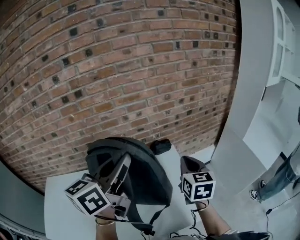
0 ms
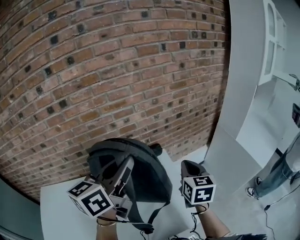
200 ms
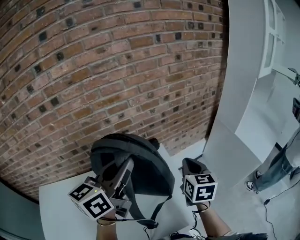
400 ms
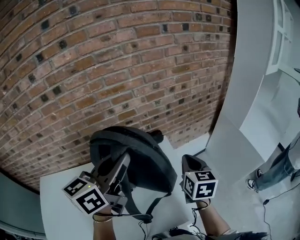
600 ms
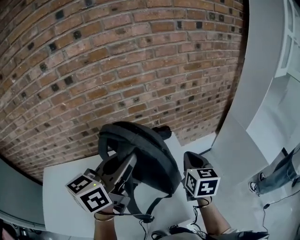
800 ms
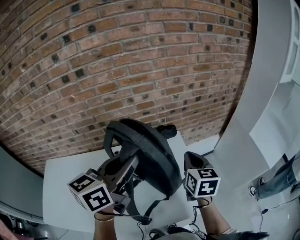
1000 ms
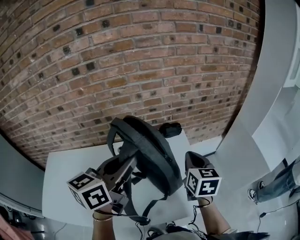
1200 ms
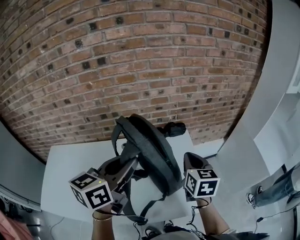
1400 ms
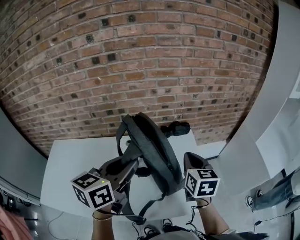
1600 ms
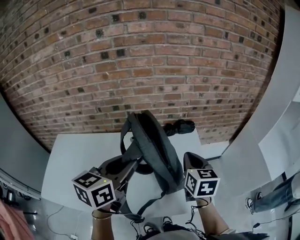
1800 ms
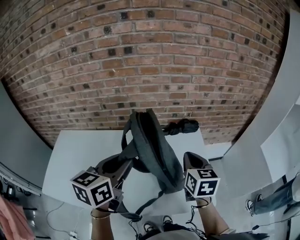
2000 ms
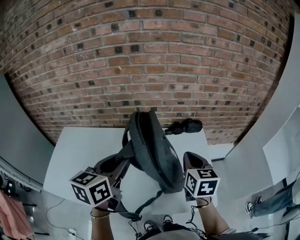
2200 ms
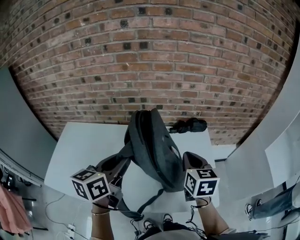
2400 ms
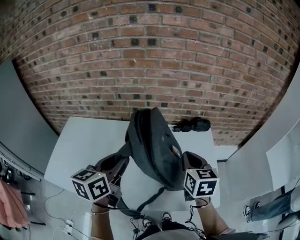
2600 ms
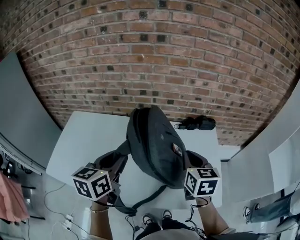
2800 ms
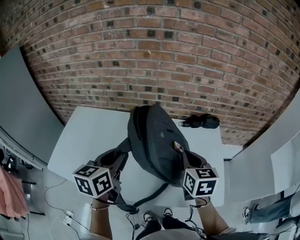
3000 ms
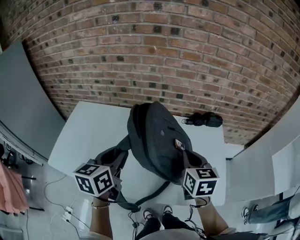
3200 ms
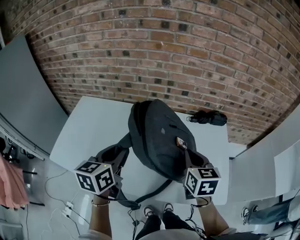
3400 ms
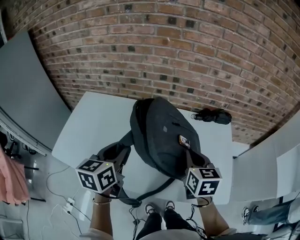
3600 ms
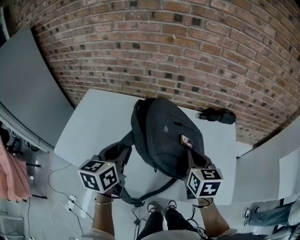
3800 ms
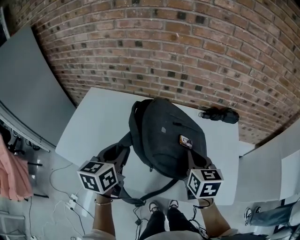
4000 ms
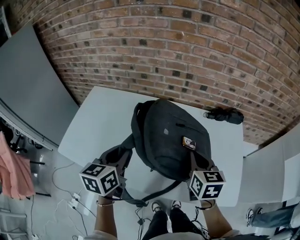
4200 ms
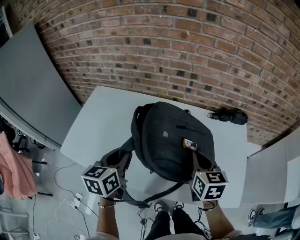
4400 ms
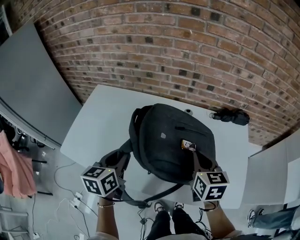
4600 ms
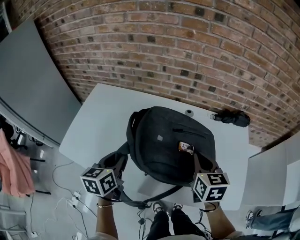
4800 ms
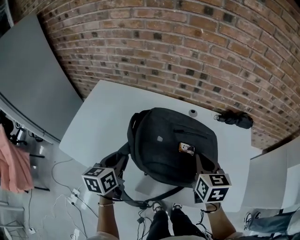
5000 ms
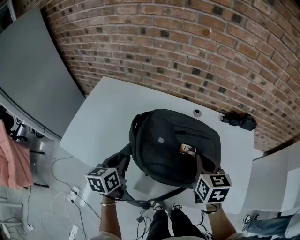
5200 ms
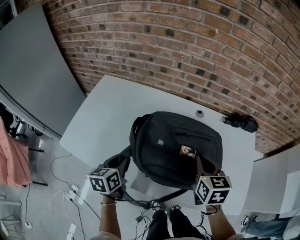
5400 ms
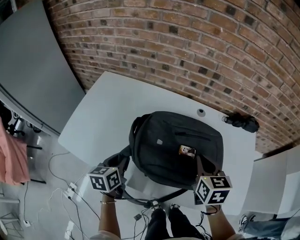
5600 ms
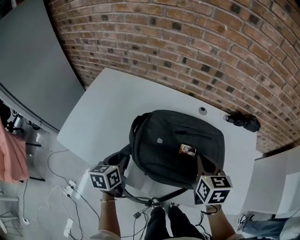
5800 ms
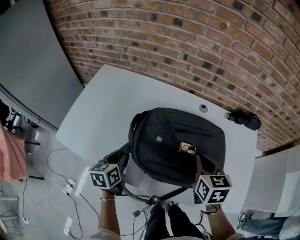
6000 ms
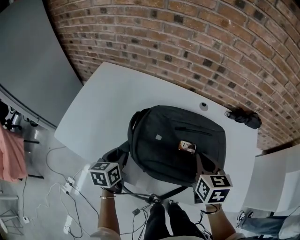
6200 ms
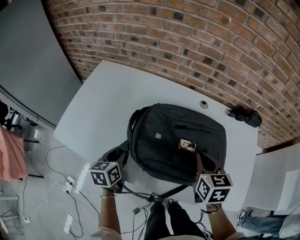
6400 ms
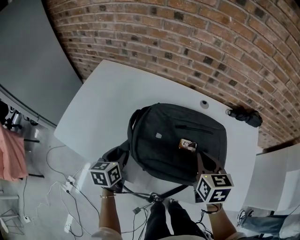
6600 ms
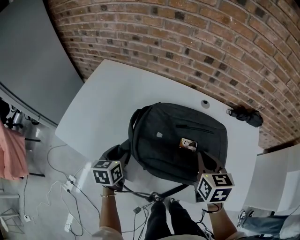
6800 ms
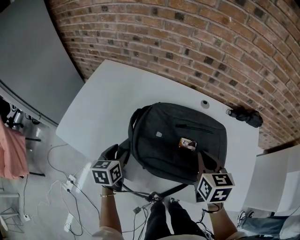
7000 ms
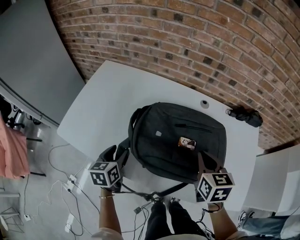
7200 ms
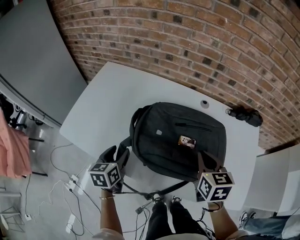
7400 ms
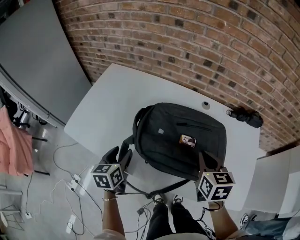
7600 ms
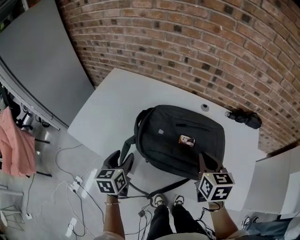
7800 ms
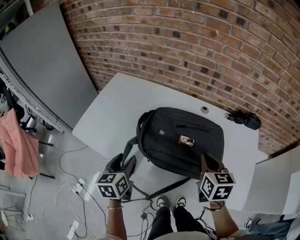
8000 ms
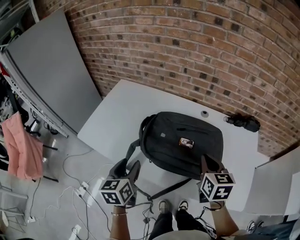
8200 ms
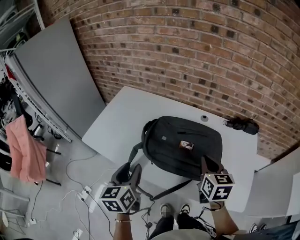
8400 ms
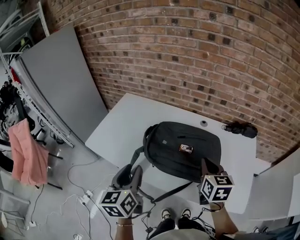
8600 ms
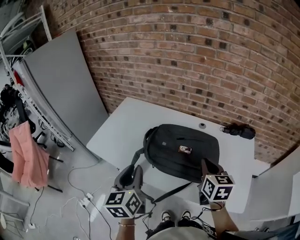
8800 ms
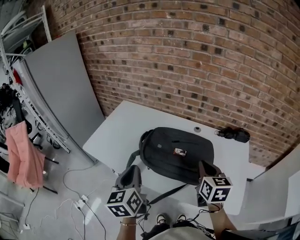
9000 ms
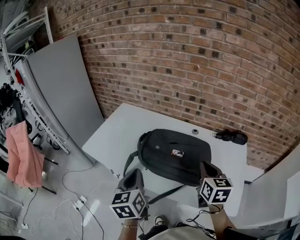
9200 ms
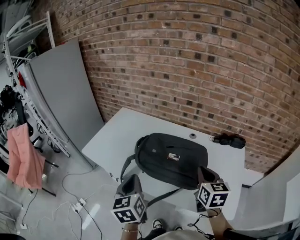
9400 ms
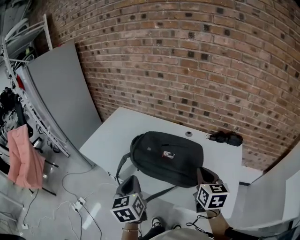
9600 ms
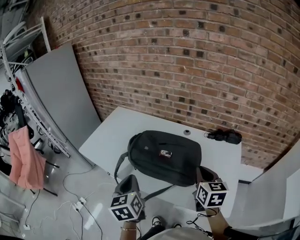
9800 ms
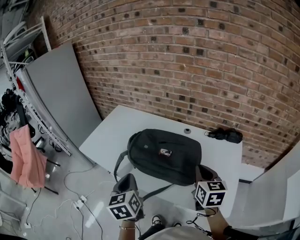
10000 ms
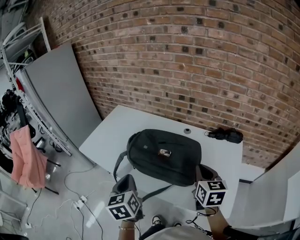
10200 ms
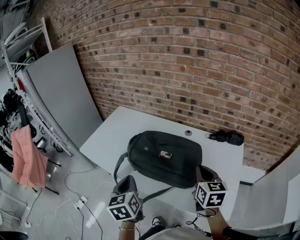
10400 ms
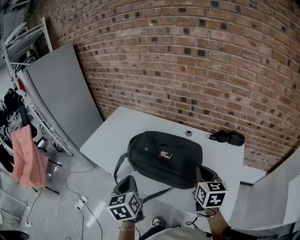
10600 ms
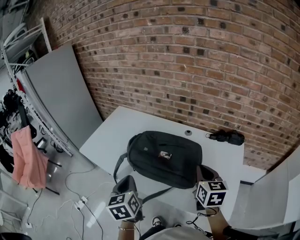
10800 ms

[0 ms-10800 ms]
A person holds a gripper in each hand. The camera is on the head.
0 ms to 1600 ms: The right gripper shifts approximately 10 cm to the left and backward. Meanwhile the left gripper moves downward, backward and to the left, about 15 cm.
1600 ms to 3000 ms: The right gripper travels to the left by some 15 cm. The left gripper goes roughly 20 cm to the left and downward, and swivels approximately 20 degrees.
3000 ms to 4600 ms: Both grippers move to the left and downward, approximately 15 cm.
4600 ms to 6200 ms: The left gripper heads downward and to the left, covering about 20 cm. The right gripper shifts roughly 10 cm downward and to the left.
6200 ms to 7800 ms: The right gripper ends up about 5 cm from where it was, while the left gripper is displaced backward and upward by approximately 10 cm, and opens up.
7800 ms to 9200 ms: The right gripper goes about 15 cm upward and backward, while the left gripper travels upward, backward and to the right by about 25 cm, and closes.
9200 ms to 10800 ms: The right gripper is displaced to the right by roughly 5 cm, while the left gripper shifts by roughly 5 cm.

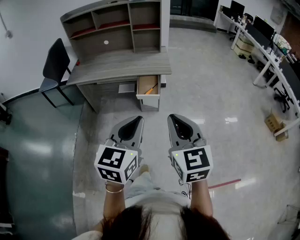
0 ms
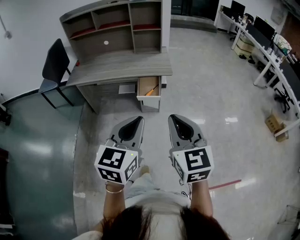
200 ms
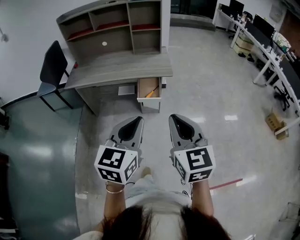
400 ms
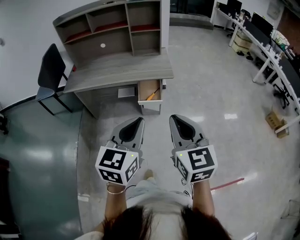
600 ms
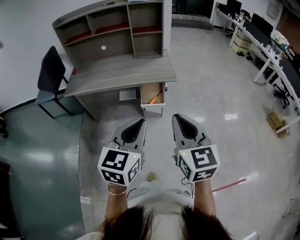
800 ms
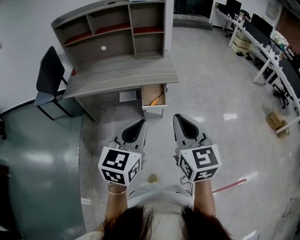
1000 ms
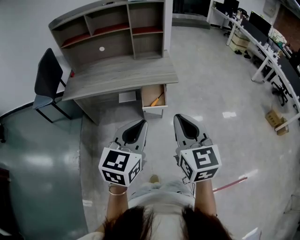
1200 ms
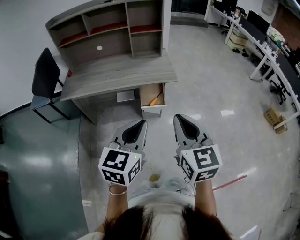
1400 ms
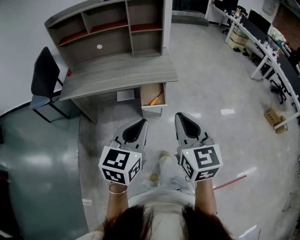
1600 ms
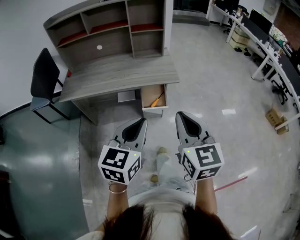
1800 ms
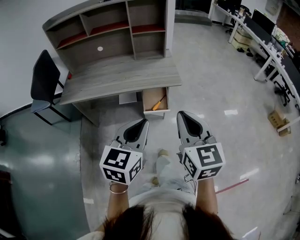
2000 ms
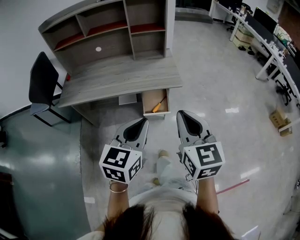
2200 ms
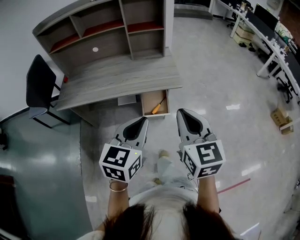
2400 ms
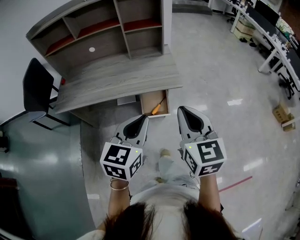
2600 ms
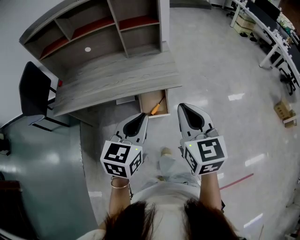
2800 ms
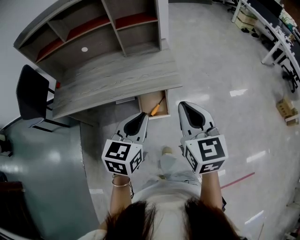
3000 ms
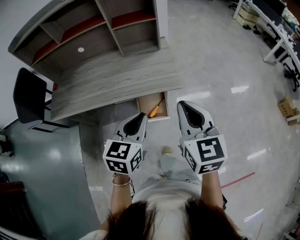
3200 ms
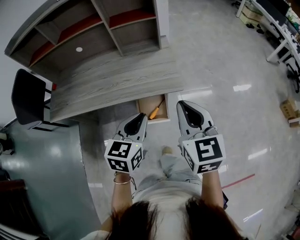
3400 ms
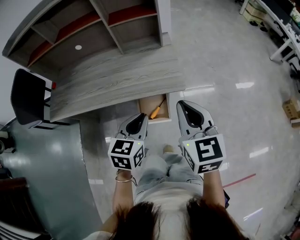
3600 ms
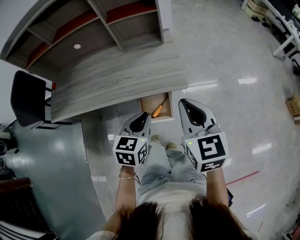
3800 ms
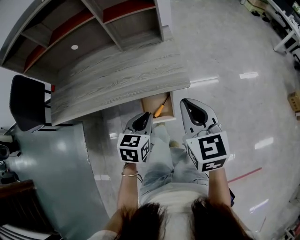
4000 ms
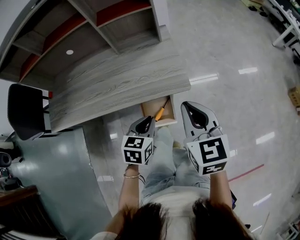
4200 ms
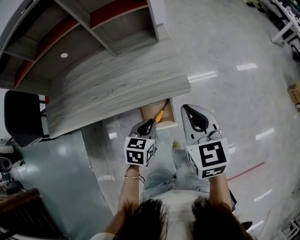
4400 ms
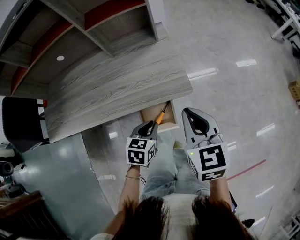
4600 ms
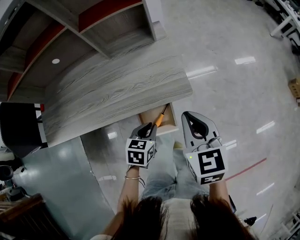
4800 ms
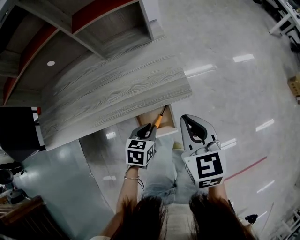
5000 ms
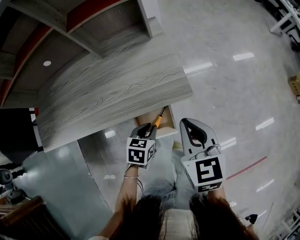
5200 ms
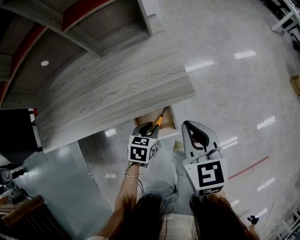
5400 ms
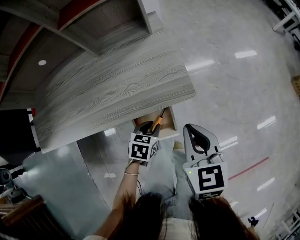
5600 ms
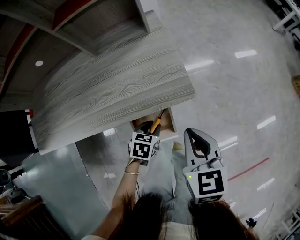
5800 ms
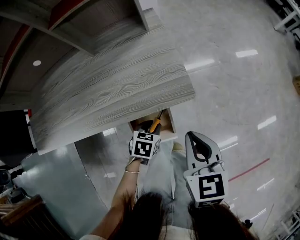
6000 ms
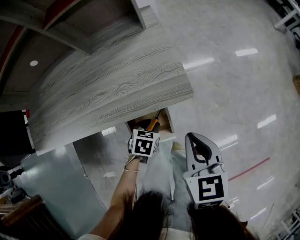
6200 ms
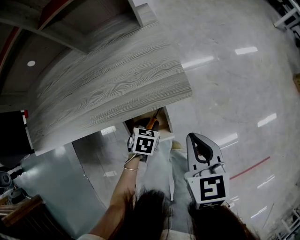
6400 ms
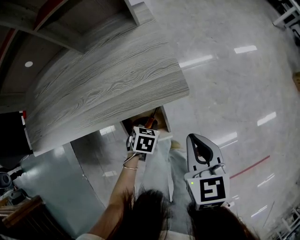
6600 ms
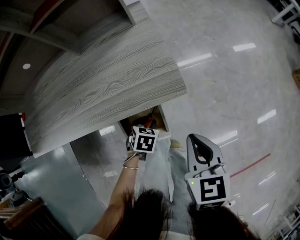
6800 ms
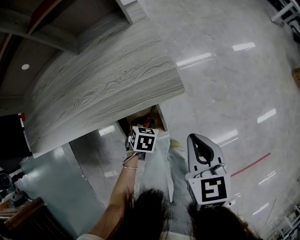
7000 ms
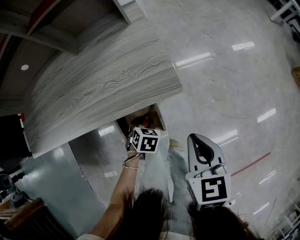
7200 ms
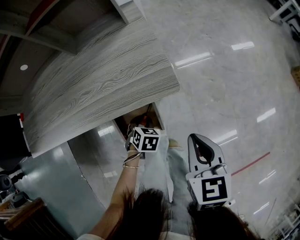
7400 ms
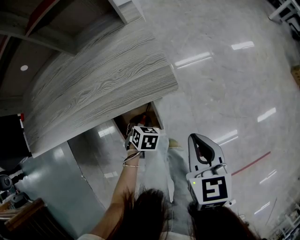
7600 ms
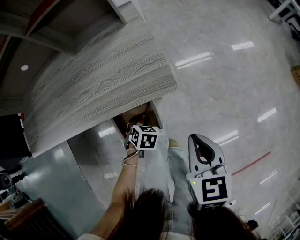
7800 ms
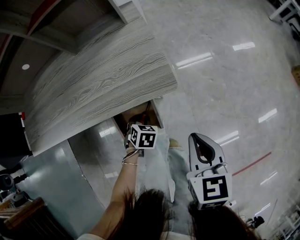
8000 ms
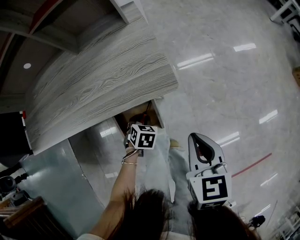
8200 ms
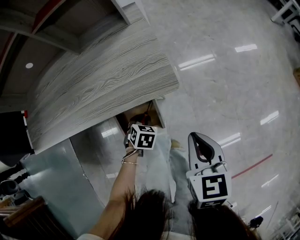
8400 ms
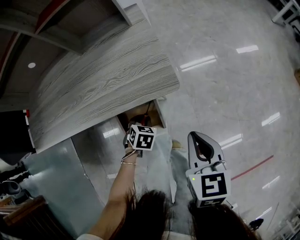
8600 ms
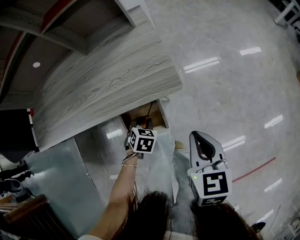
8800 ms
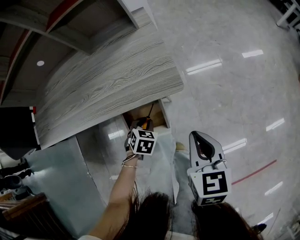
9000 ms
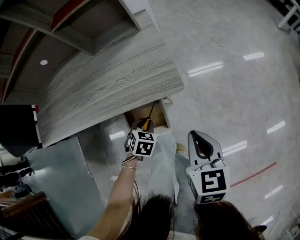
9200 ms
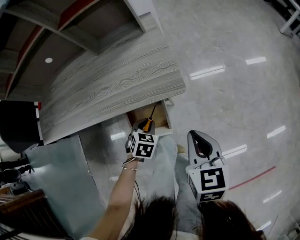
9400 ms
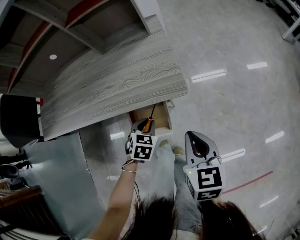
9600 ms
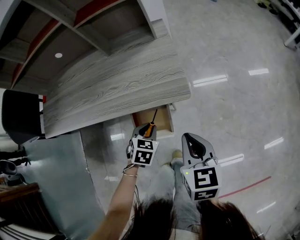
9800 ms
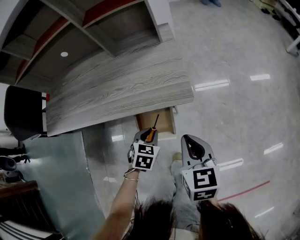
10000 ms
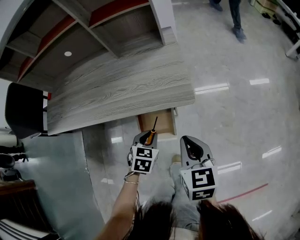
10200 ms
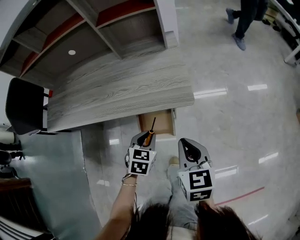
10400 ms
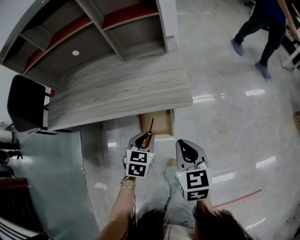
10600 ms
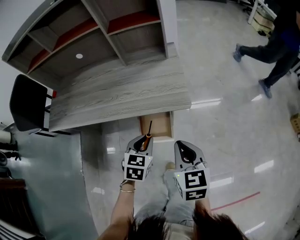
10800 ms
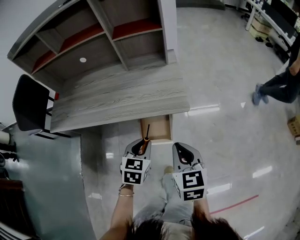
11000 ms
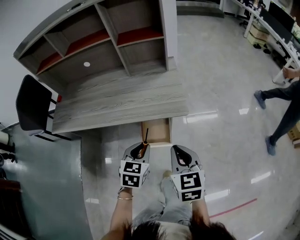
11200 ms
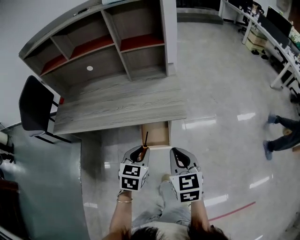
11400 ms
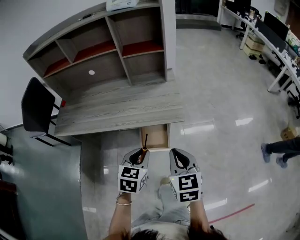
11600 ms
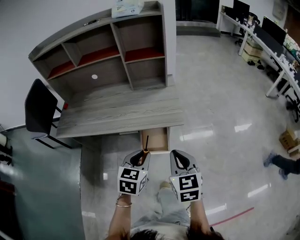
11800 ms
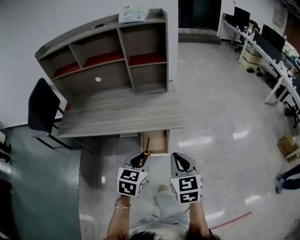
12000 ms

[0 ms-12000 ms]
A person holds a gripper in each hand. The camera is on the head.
0 ms to 1600 ms: The grippers both shift forward and to the left by roughly 15 cm.
1600 ms to 3000 ms: Both grippers move forward, about 25 cm.
3000 ms to 4400 ms: The right gripper heads forward and downward, covering roughly 20 cm, while the left gripper heads downward and forward, covering about 25 cm, and turns by roughly 20 degrees.
4400 ms to 6000 ms: The grippers both shift downward by about 15 cm. The left gripper opens.
6000 ms to 7600 ms: The right gripper heads to the right, covering roughly 5 cm. The left gripper is displaced downward by approximately 5 cm, and turns by about 20 degrees.
7600 ms to 9000 ms: The grippers move only a little.
9000 ms to 10400 ms: The right gripper travels to the left and upward by about 10 cm. The left gripper moves upward, about 15 cm.
10400 ms to 12000 ms: The right gripper goes about 15 cm upward and backward. The left gripper goes some 25 cm upward and backward.

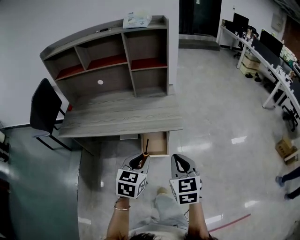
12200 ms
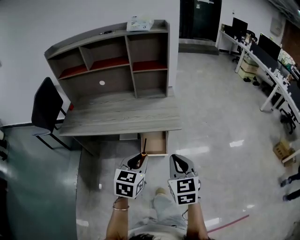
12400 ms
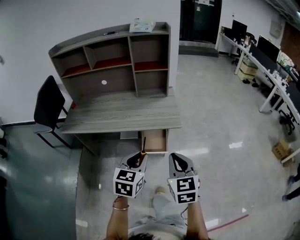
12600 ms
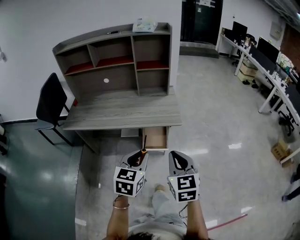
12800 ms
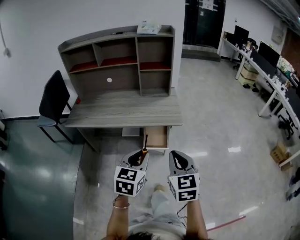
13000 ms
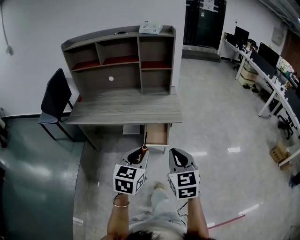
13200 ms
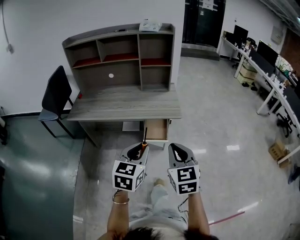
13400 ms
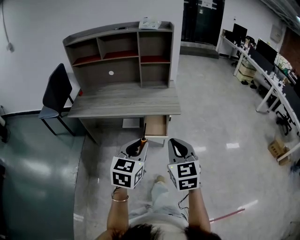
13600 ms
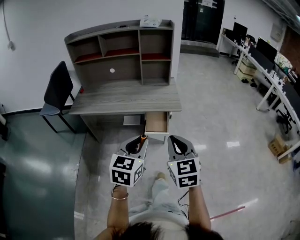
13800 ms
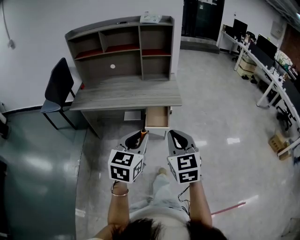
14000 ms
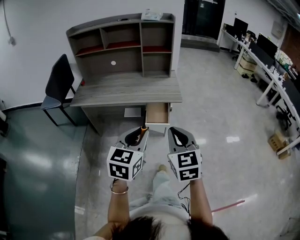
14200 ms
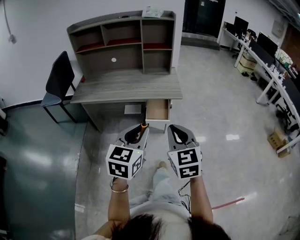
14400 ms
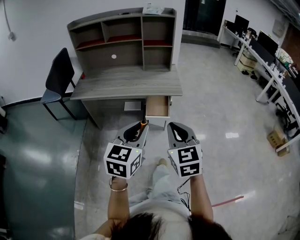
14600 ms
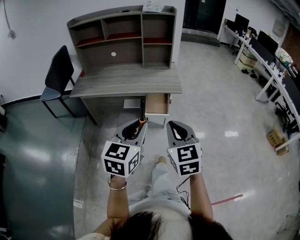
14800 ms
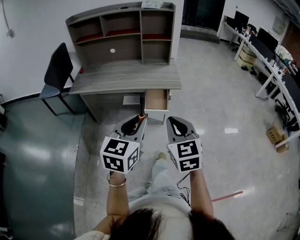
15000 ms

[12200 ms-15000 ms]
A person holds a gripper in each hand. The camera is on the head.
12200 ms to 13600 ms: The two grippers go approximately 20 cm backward and upward.
13600 ms to 15000 ms: The two grippers go roughly 10 cm backward.
